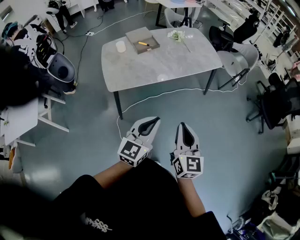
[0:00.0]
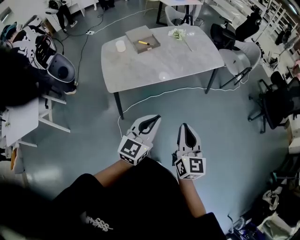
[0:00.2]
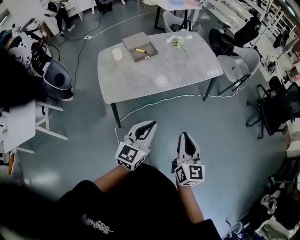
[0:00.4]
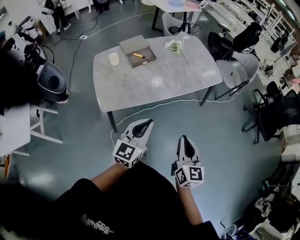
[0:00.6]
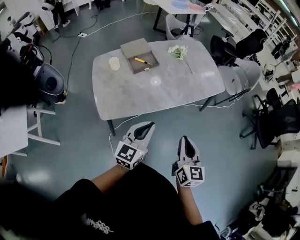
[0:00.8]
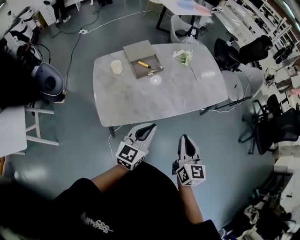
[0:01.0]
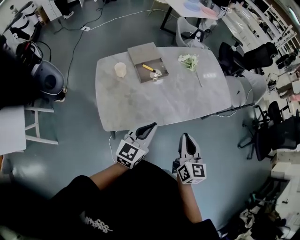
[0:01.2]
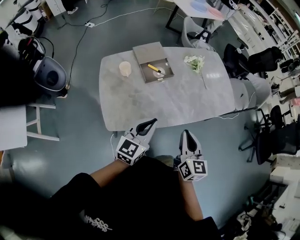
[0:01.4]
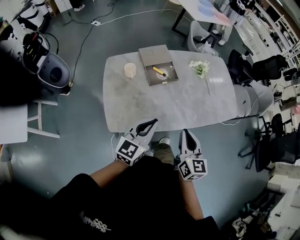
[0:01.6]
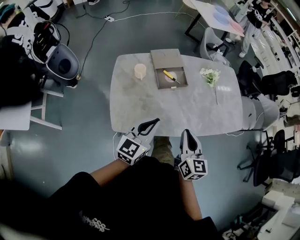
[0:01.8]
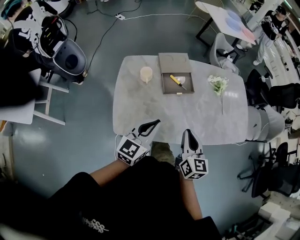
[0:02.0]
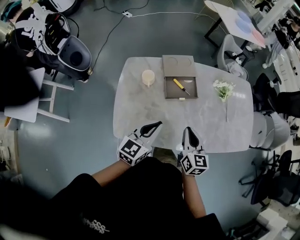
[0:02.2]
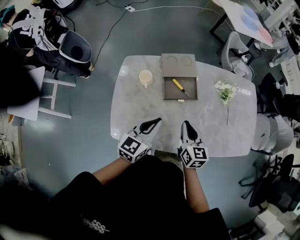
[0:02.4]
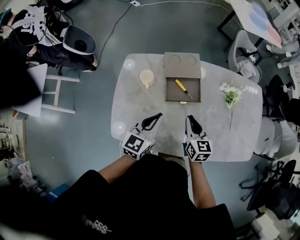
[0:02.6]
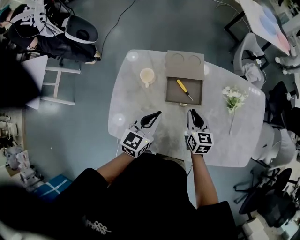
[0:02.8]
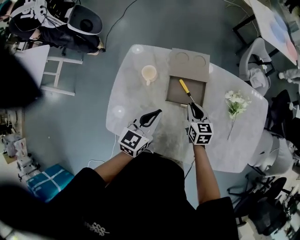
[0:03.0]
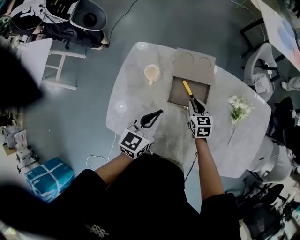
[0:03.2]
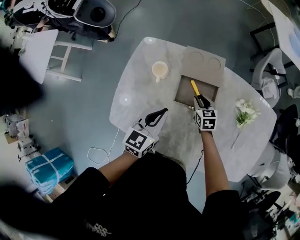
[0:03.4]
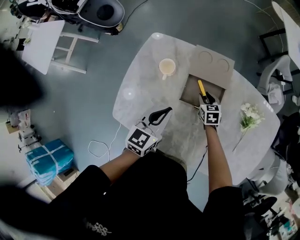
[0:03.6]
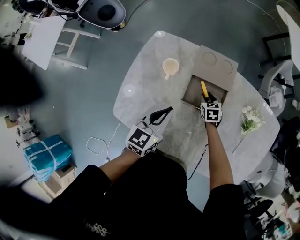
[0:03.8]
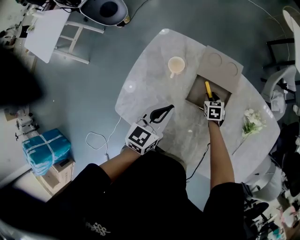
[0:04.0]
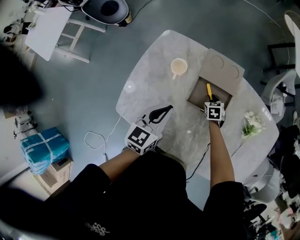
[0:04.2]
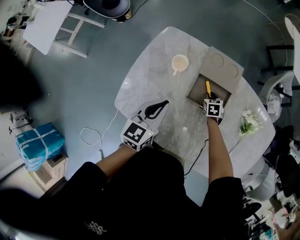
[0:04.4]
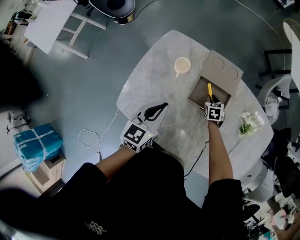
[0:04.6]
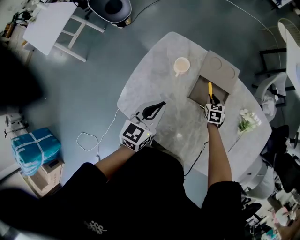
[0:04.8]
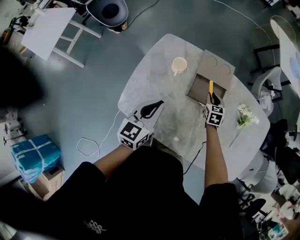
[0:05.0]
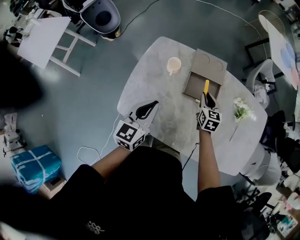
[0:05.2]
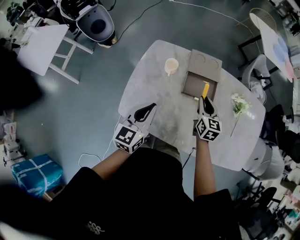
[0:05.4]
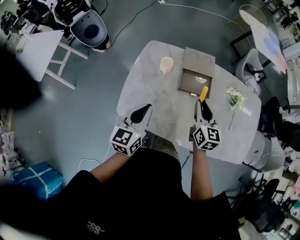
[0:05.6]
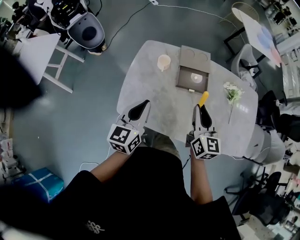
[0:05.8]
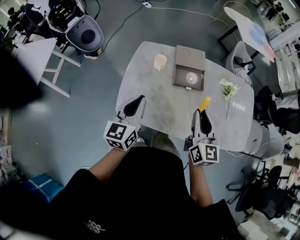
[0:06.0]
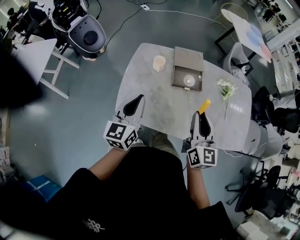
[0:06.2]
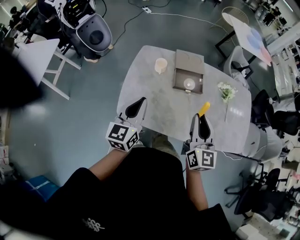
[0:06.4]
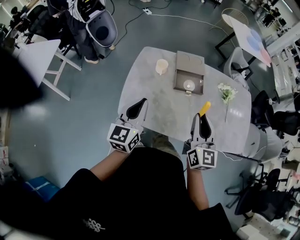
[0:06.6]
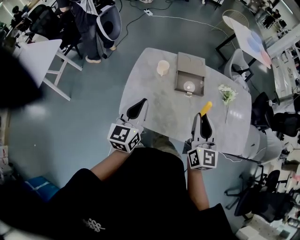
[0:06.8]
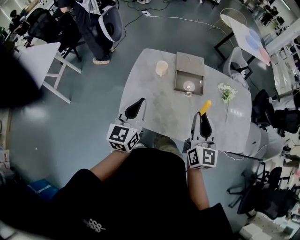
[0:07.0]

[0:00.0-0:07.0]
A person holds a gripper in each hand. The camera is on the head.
0:00.0 to 0:01.4: The two grippers travel together, forward and to the left, approximately 40 cm.
0:01.4 to 0:02.8: The left gripper changes place by about 25 cm, and swivels approximately 30 degrees, while the right gripper changes place by approximately 40 cm, and swivels approximately 30 degrees.
0:02.8 to 0:04.2: The right gripper goes some 25 cm downward and forward, and tips its fingers downward by some 30 degrees. The left gripper heads to the left, covering some 5 cm.
0:04.2 to 0:05.6: The left gripper is displaced backward, upward and to the left by about 20 cm, while the right gripper goes approximately 40 cm upward and backward, and tilts its fingers about 50 degrees upward.
0:05.6 to 0:07.0: The left gripper heads upward, covering some 5 cm; the right gripper shifts roughly 20 cm backward and upward.

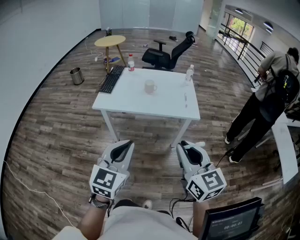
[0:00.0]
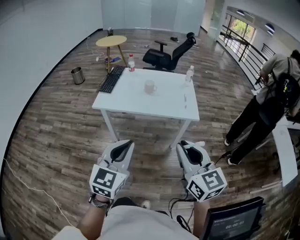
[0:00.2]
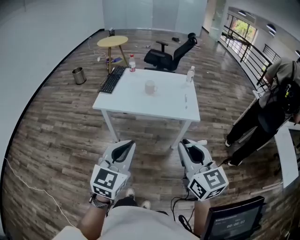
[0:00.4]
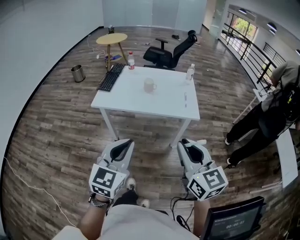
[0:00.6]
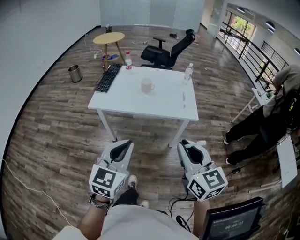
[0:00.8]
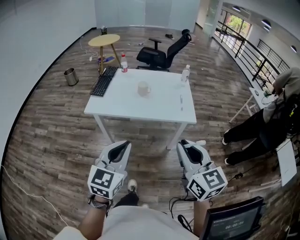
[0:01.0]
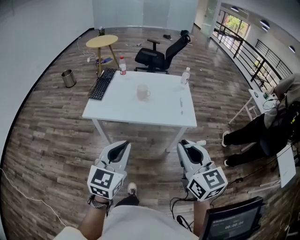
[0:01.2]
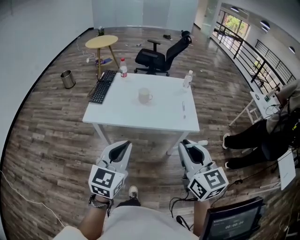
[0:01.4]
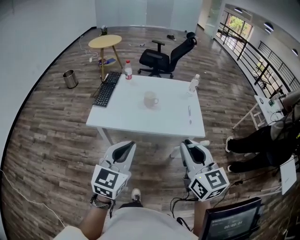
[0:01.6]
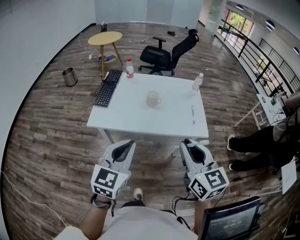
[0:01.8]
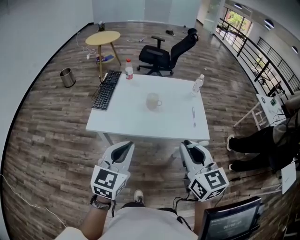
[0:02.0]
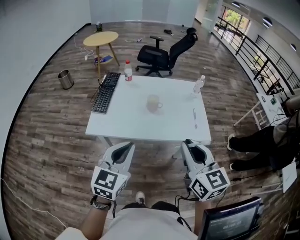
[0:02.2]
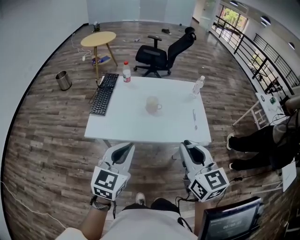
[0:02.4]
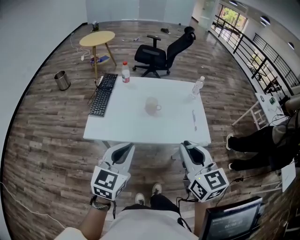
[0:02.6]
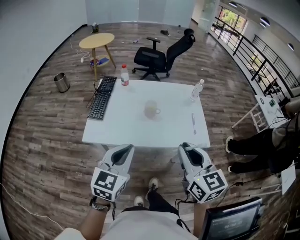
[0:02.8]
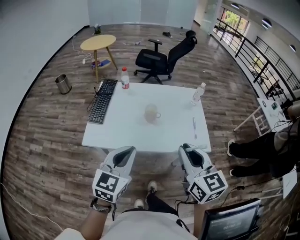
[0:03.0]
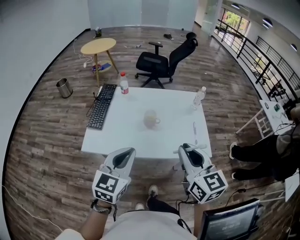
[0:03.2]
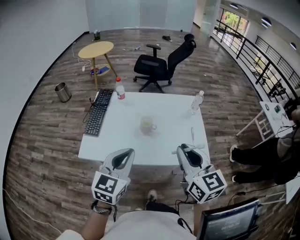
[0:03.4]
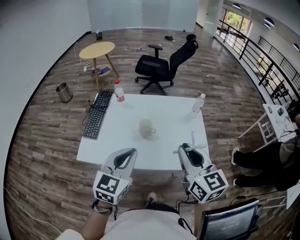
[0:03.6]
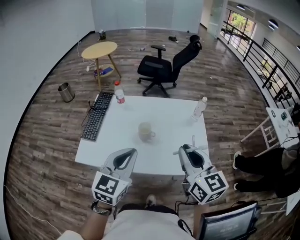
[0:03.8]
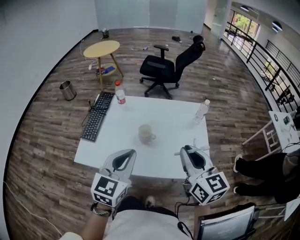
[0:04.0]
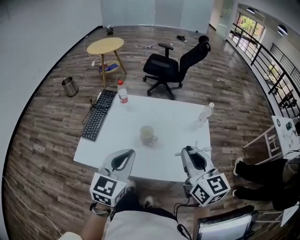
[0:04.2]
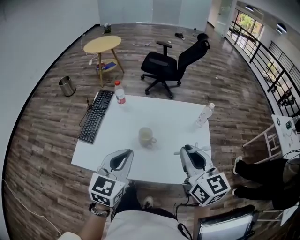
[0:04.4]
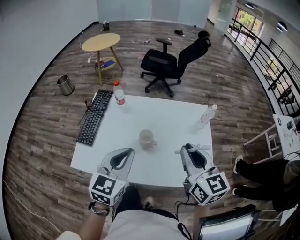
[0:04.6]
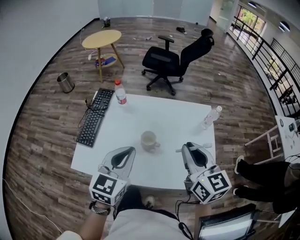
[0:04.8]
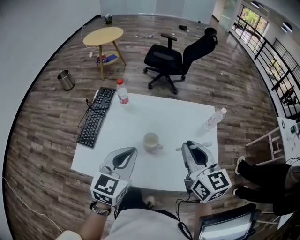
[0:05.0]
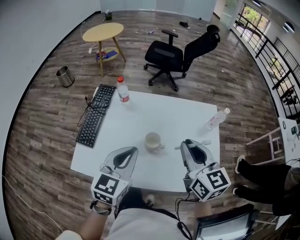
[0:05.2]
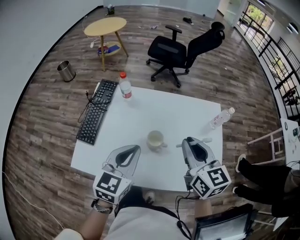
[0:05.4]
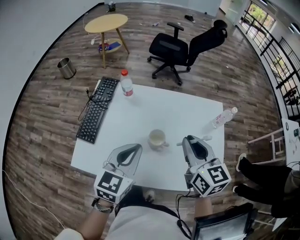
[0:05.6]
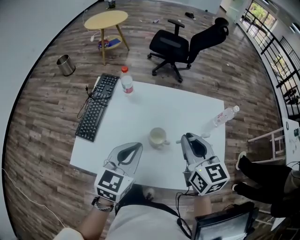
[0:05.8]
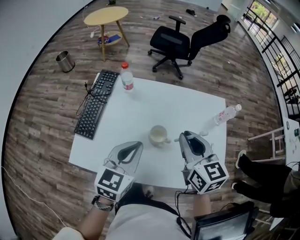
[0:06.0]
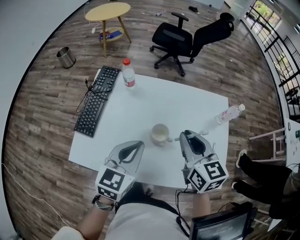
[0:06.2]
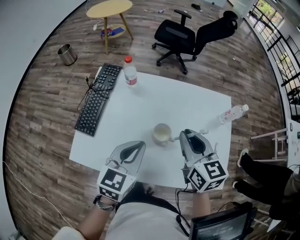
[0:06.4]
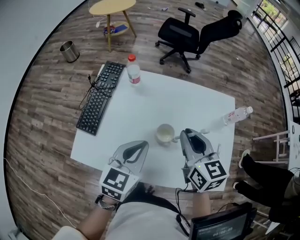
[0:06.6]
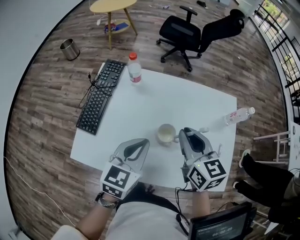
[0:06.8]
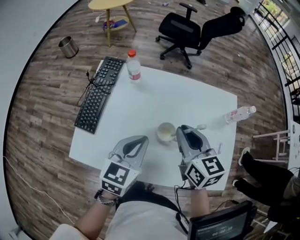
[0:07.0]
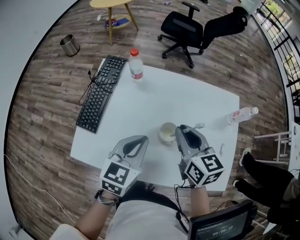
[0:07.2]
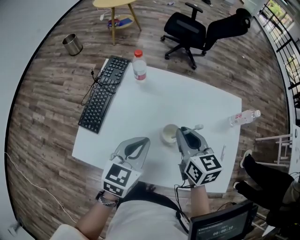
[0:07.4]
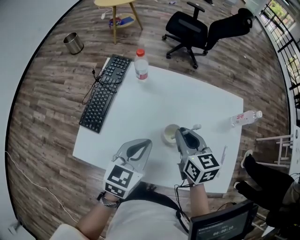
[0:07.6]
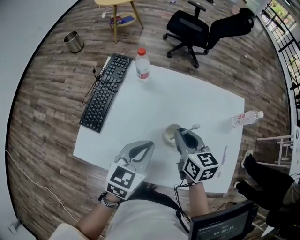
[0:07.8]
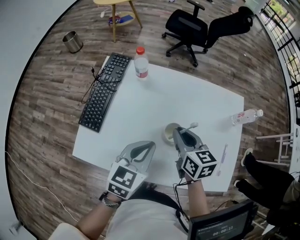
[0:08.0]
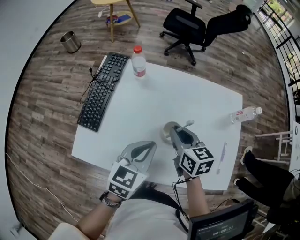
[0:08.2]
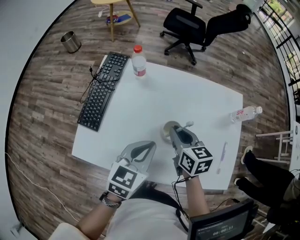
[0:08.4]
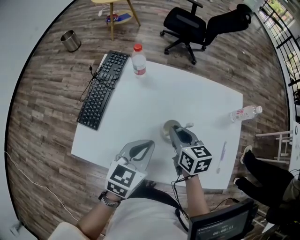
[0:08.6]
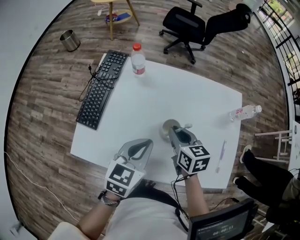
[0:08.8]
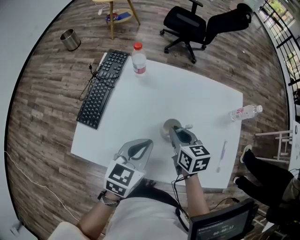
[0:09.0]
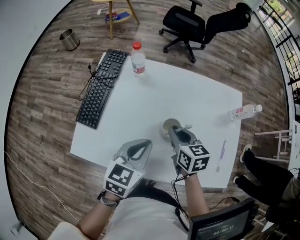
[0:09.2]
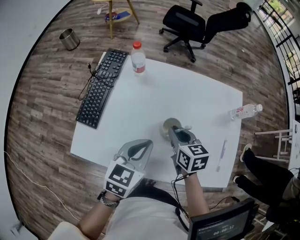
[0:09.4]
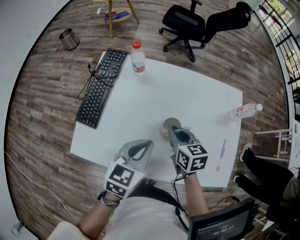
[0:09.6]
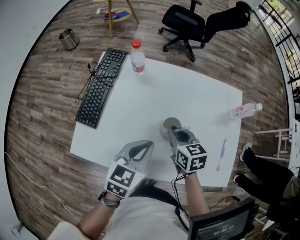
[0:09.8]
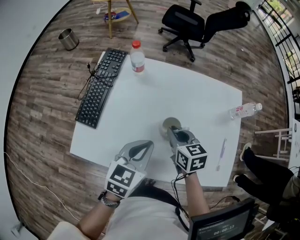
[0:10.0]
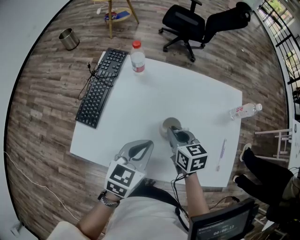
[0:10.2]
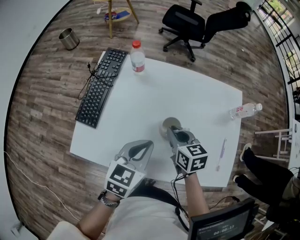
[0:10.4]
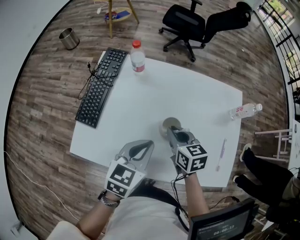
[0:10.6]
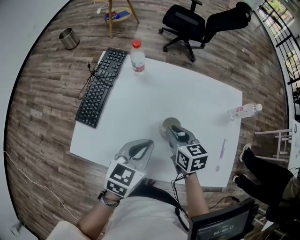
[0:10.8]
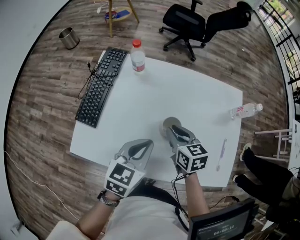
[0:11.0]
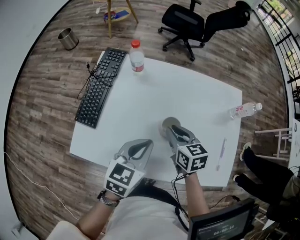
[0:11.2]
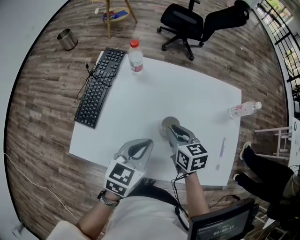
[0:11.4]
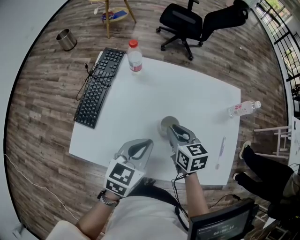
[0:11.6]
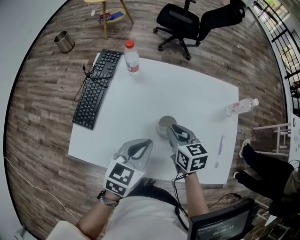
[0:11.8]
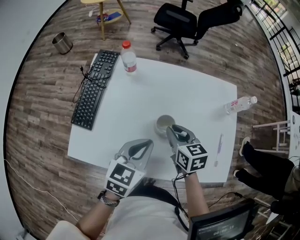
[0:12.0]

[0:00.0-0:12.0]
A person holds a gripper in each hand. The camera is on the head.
0:00.0 to 0:01.6: Both grippers travel together forward, some 15 cm.
0:01.6 to 0:03.0: Both grippers travel together forward, some 10 cm.
0:03.0 to 0:04.4: Both grippers move forward, some 15 cm.
0:04.4 to 0:06.0: The left gripper travels forward and downward by some 10 cm. The right gripper moves forward, downward and to the left, about 15 cm.
0:06.0 to 0:07.6: The right gripper travels downward and to the left by about 10 cm.
0:07.6 to 0:09.0: The right gripper moves downward, about 5 cm.
0:09.0 to 0:10.4: The two grippers keep their place.
0:10.4 to 0:12.0: The grippers stay close to where they were, moving slightly.

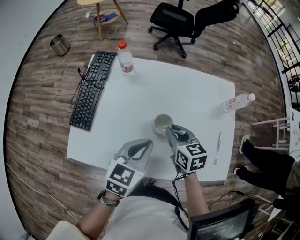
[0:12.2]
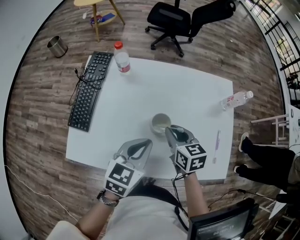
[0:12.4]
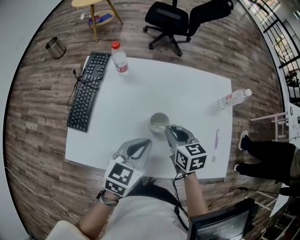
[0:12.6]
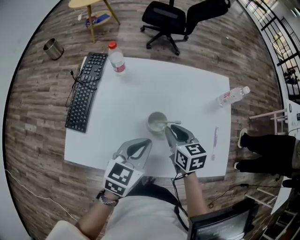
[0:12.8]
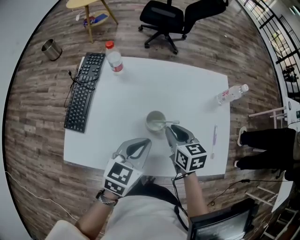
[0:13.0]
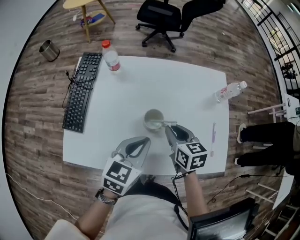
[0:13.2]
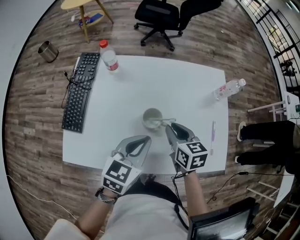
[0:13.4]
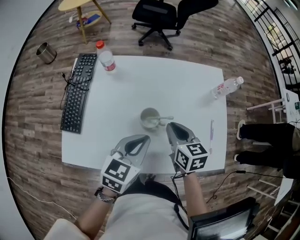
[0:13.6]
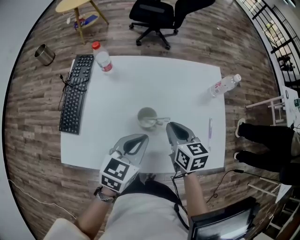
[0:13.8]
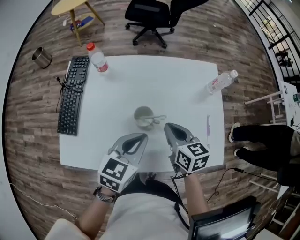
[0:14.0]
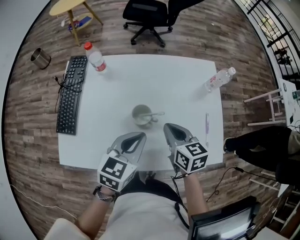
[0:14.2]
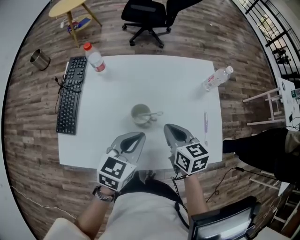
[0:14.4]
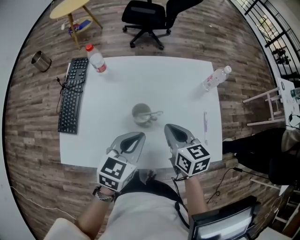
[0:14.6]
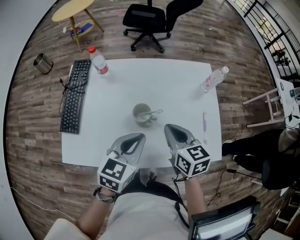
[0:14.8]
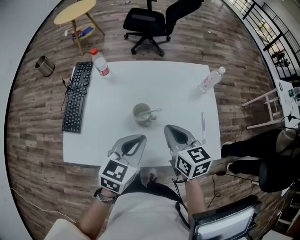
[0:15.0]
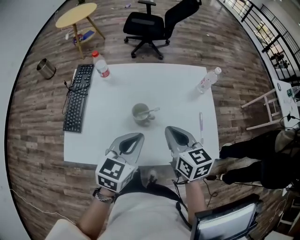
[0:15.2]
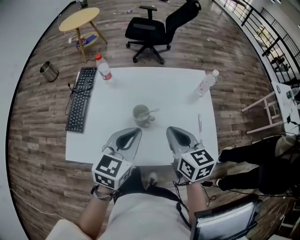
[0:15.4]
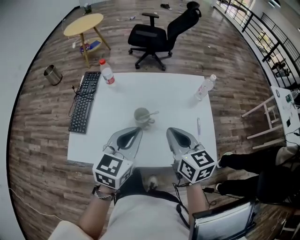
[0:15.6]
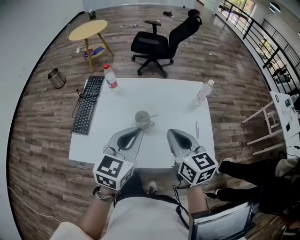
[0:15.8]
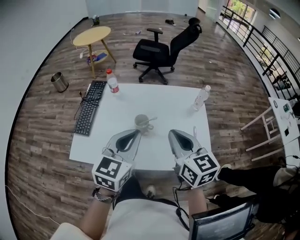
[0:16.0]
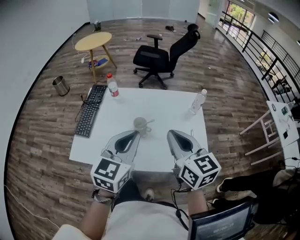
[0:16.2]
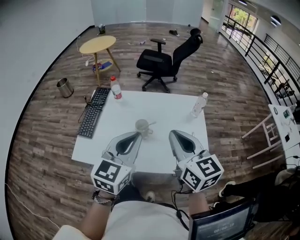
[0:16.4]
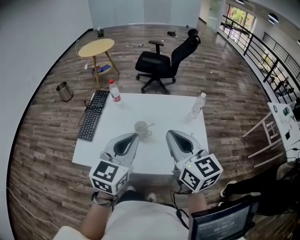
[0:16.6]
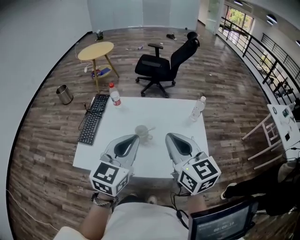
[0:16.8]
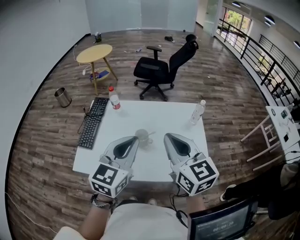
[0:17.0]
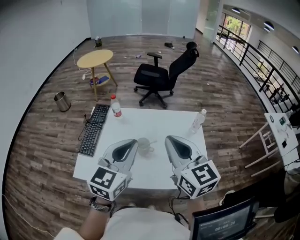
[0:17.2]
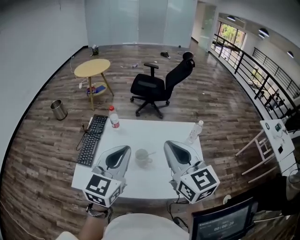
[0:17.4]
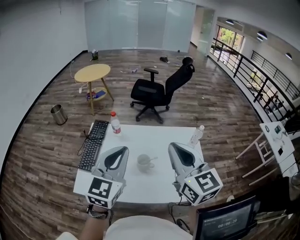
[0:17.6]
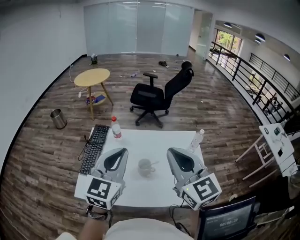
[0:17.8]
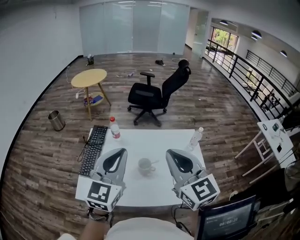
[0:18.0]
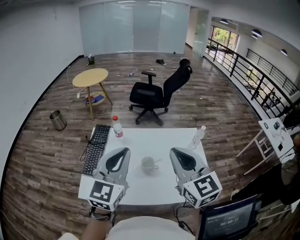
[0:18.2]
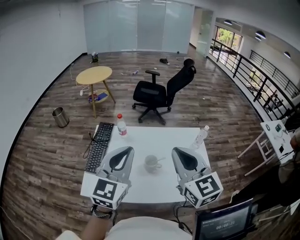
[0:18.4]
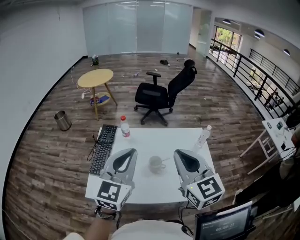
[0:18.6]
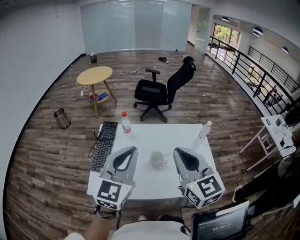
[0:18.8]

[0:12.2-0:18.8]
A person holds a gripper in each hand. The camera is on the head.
0:12.2 to 0:13.8: The right gripper travels to the right by some 5 cm.
0:13.8 to 0:15.4: The left gripper is displaced upward by about 10 cm. Meanwhile the right gripper heads upward and backward, covering roughly 10 cm.
0:15.4 to 0:17.2: The grippers both shift upward by some 15 cm. The right gripper rotates approximately 20 degrees.
0:17.2 to 0:18.8: The right gripper moves some 5 cm; the left gripper travels to the left by about 5 cm.
